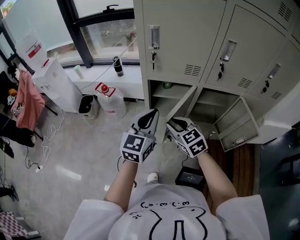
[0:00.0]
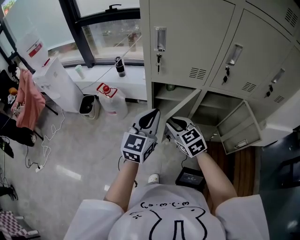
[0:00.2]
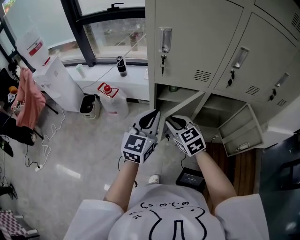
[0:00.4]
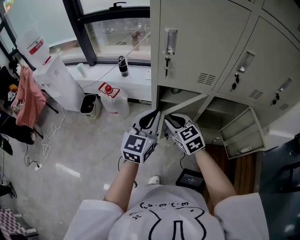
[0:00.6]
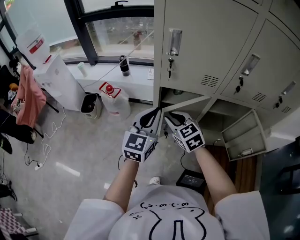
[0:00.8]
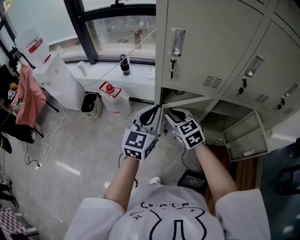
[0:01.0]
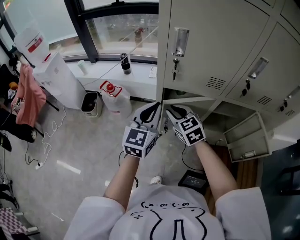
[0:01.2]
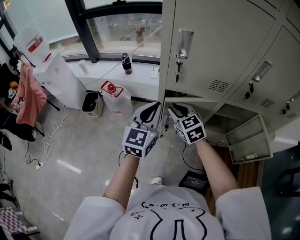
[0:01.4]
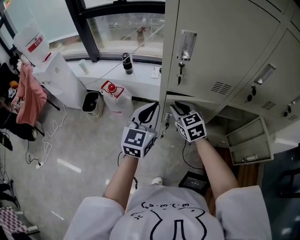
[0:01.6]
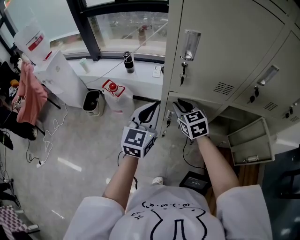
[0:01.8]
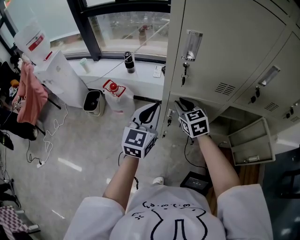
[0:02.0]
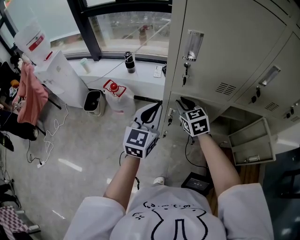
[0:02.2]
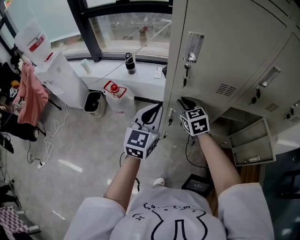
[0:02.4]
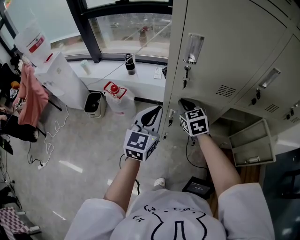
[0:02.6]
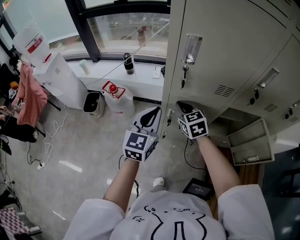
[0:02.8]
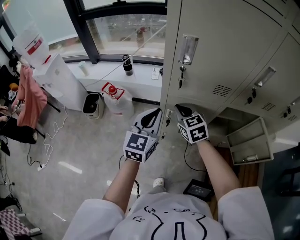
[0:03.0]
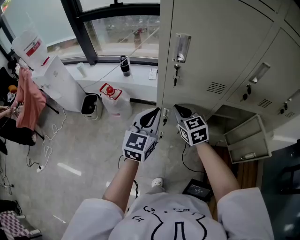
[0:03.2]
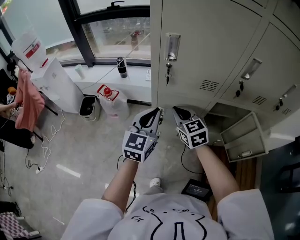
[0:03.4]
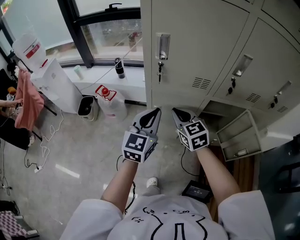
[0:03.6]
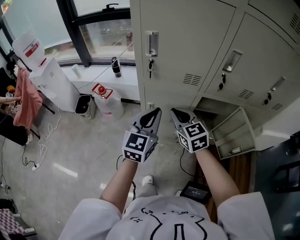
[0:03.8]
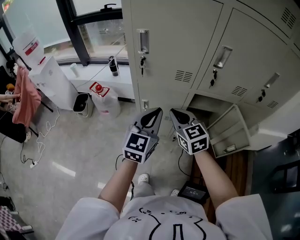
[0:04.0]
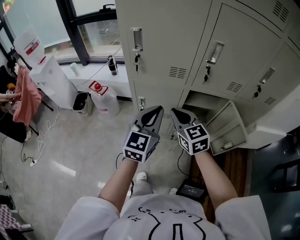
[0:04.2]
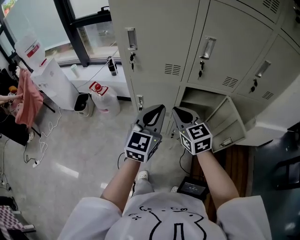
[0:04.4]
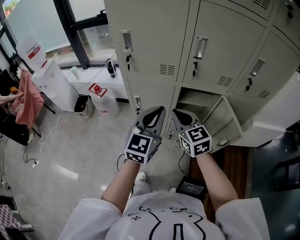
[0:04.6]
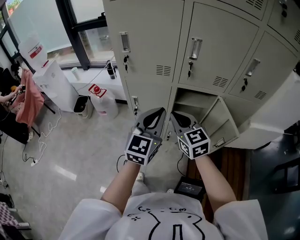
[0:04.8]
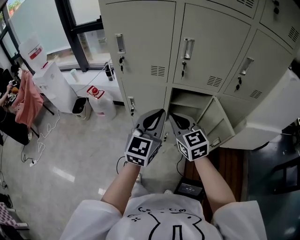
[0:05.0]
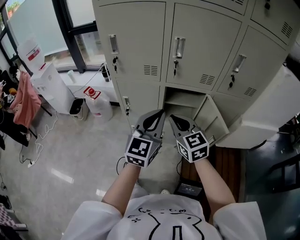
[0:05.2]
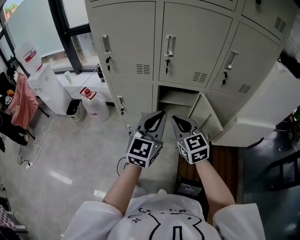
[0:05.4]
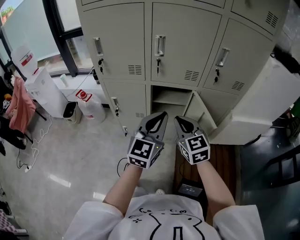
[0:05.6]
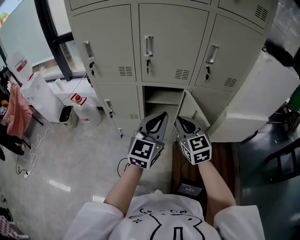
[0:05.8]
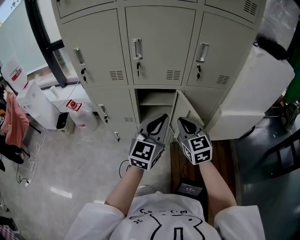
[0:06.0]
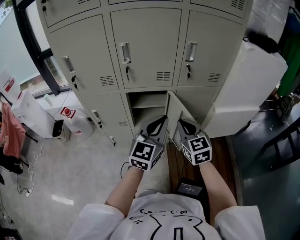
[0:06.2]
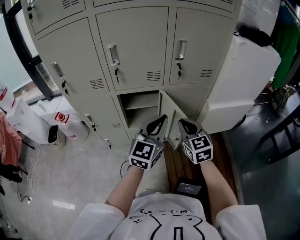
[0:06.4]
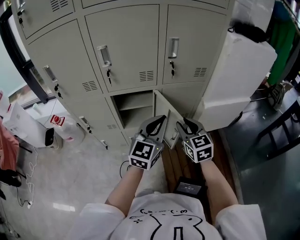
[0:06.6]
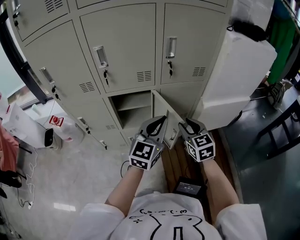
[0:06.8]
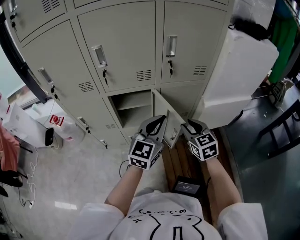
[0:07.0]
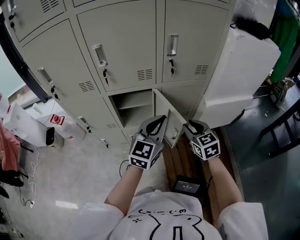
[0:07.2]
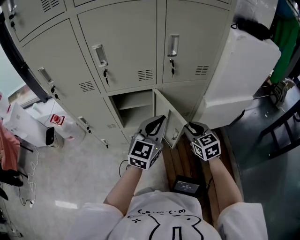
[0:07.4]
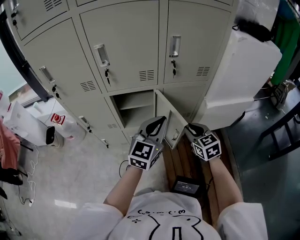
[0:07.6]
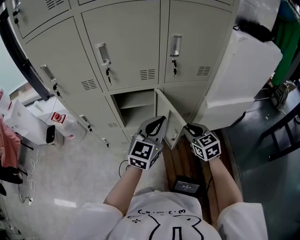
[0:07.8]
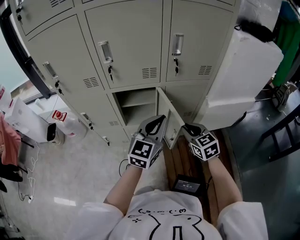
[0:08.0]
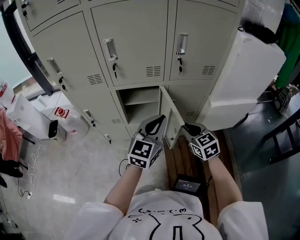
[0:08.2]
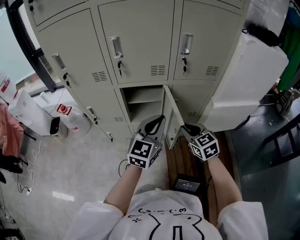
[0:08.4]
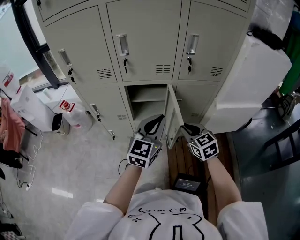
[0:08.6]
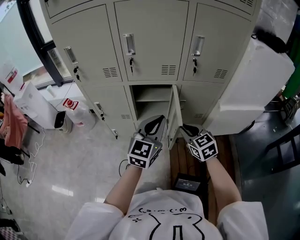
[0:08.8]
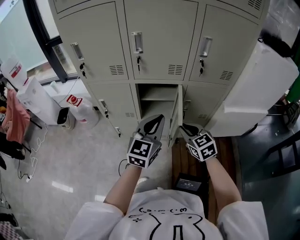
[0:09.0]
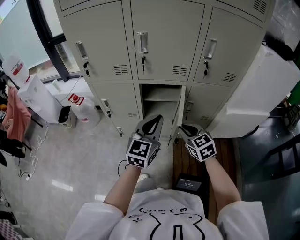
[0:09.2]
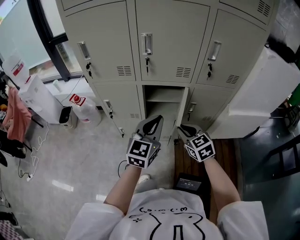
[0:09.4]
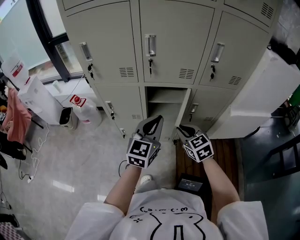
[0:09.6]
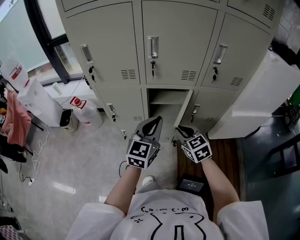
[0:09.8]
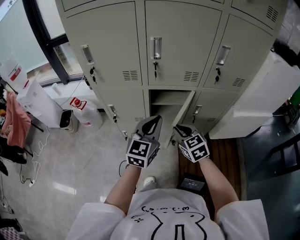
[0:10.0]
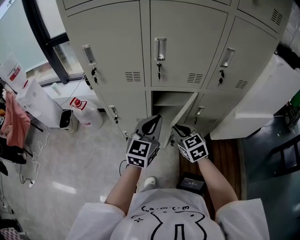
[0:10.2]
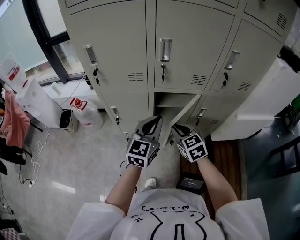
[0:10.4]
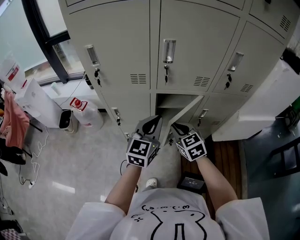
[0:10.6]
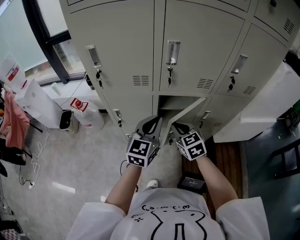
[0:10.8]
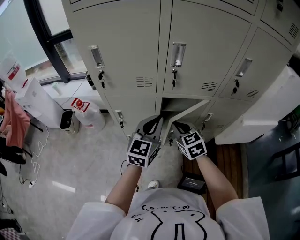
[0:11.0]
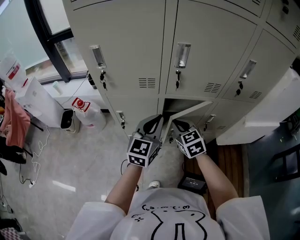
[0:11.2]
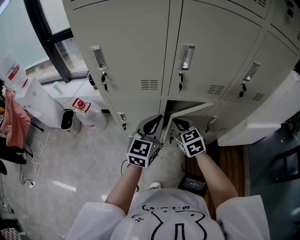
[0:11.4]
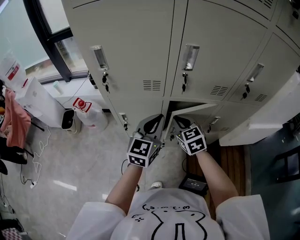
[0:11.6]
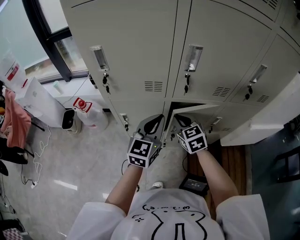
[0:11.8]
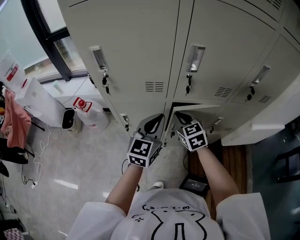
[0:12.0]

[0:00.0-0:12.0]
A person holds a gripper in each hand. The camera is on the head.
0:00.0 to 0:01.6: The right gripper travels forward by some 15 cm; the left gripper heads forward and to the left, covering approximately 15 cm.
0:01.6 to 0:03.0: The grippers move only a little.
0:03.0 to 0:04.4: The left gripper heads to the right and backward, covering roughly 20 cm. Meanwhile the right gripper is displaced backward, to the right and upward by about 25 cm.
0:04.4 to 0:06.0: The grippers both shift to the right by some 25 cm.
0:06.0 to 0:07.6: The left gripper is displaced to the right by some 10 cm. Meanwhile the right gripper moves to the right and downward, some 15 cm.
0:07.6 to 0:09.0: Both grippers travel together to the left, approximately 10 cm.
0:09.0 to 0:10.4: The grippers both shift to the left and forward by about 15 cm.
0:10.4 to 0:12.0: Both grippers move forward and to the left, roughly 15 cm.

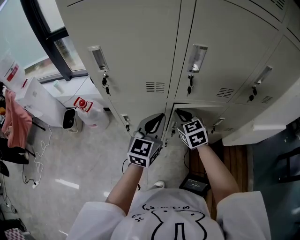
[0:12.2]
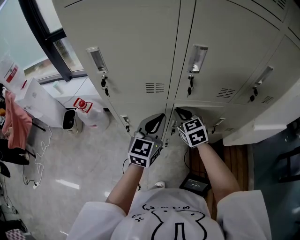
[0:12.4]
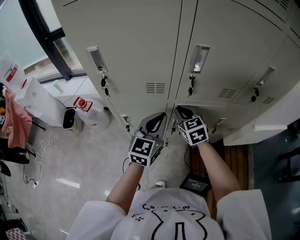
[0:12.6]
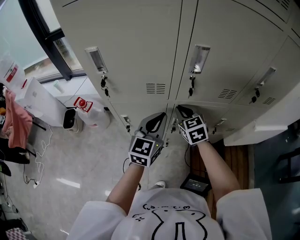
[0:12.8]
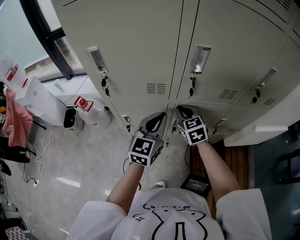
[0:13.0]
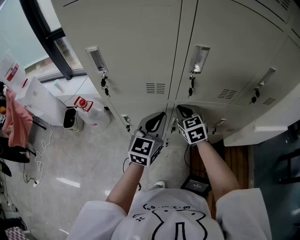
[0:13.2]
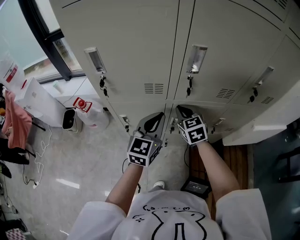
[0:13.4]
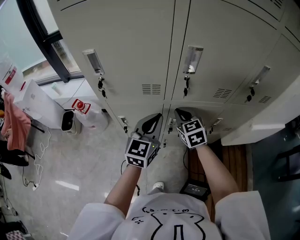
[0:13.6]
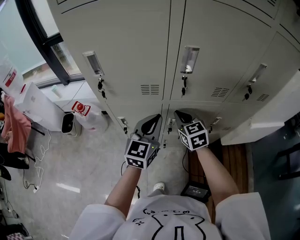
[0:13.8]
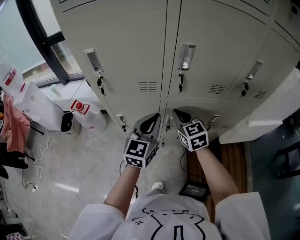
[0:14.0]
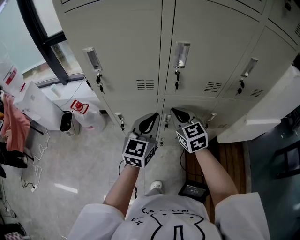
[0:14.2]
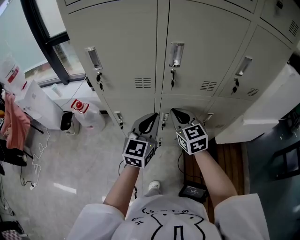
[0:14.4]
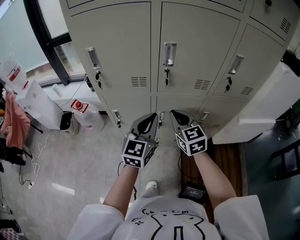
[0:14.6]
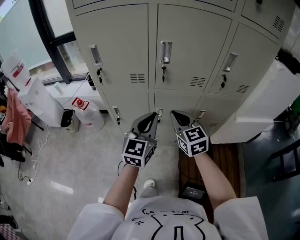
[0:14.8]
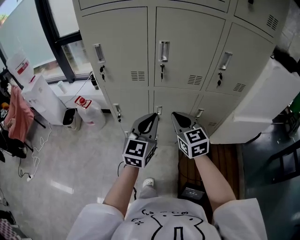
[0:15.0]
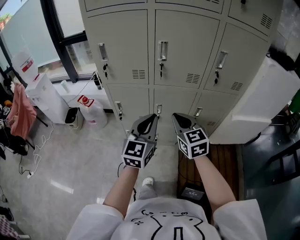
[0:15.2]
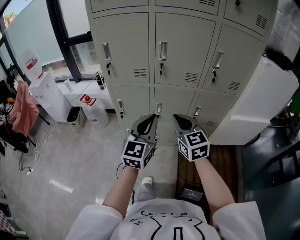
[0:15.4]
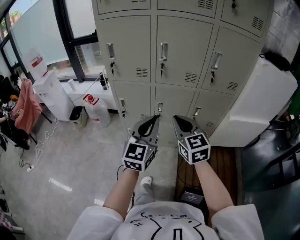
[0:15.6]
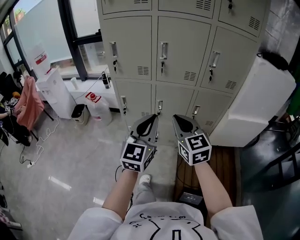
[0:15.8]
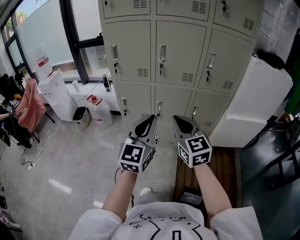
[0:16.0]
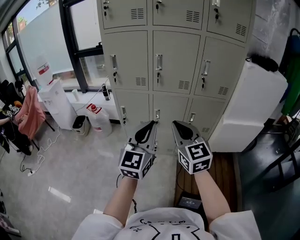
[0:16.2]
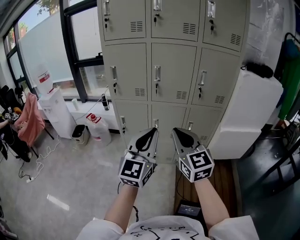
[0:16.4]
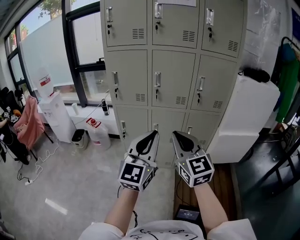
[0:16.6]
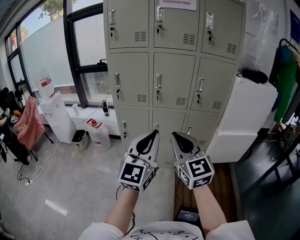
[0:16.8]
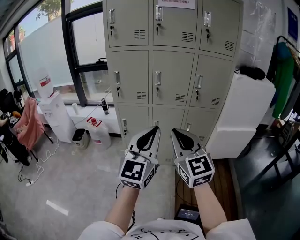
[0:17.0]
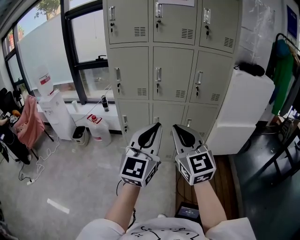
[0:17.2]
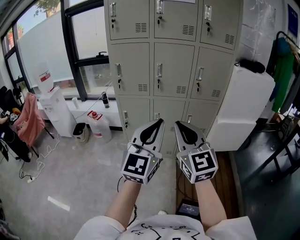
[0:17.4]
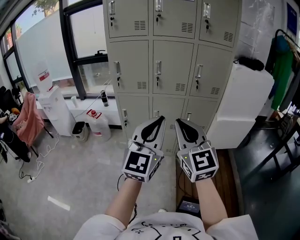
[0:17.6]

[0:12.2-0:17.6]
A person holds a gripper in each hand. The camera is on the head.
0:12.2 to 0:13.6: The grippers move only a little.
0:13.6 to 0:15.0: The right gripper is displaced backward and upward by approximately 20 cm; the left gripper travels backward, to the right and upward by some 15 cm.
0:15.0 to 0:16.2: The grippers both shift backward and upward by about 20 cm.
0:16.2 to 0:17.6: The two grippers go some 15 cm backward and upward.

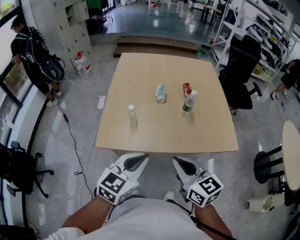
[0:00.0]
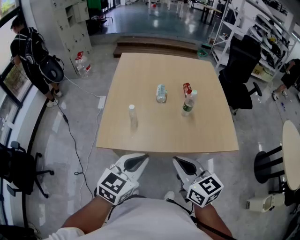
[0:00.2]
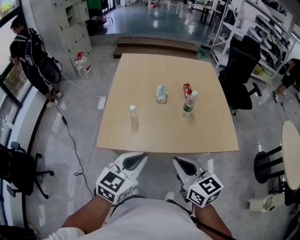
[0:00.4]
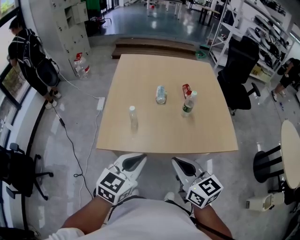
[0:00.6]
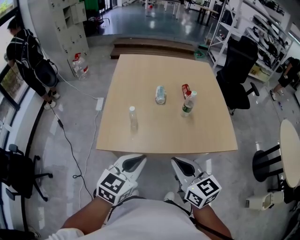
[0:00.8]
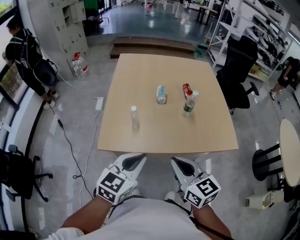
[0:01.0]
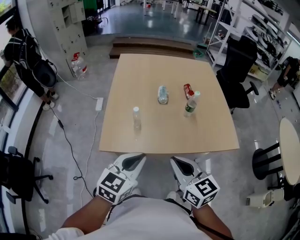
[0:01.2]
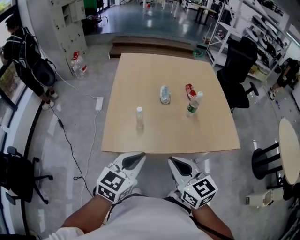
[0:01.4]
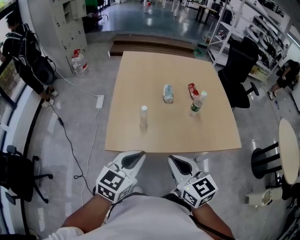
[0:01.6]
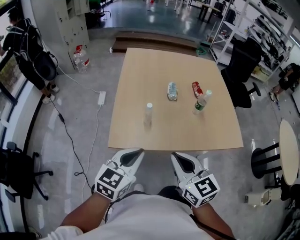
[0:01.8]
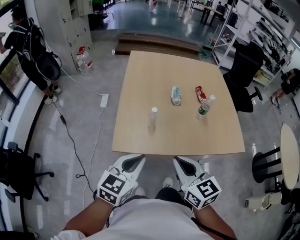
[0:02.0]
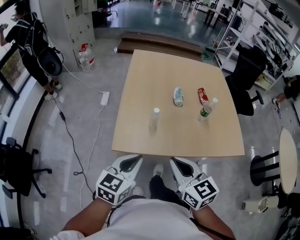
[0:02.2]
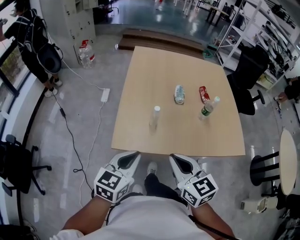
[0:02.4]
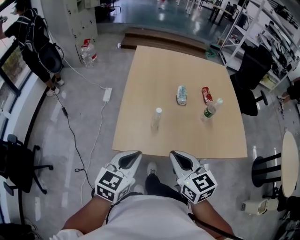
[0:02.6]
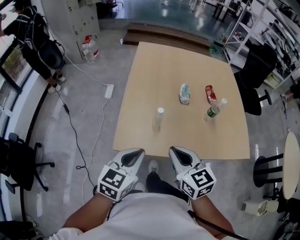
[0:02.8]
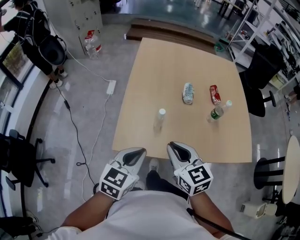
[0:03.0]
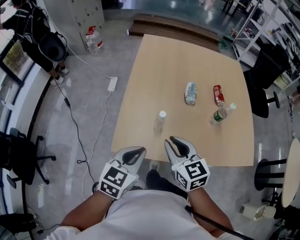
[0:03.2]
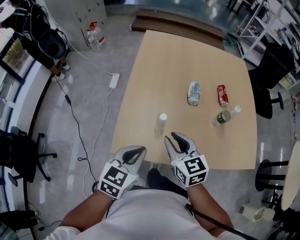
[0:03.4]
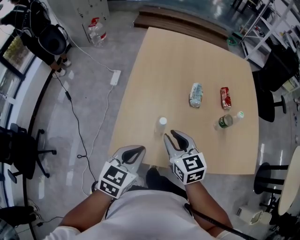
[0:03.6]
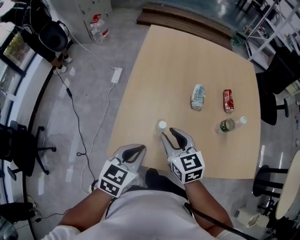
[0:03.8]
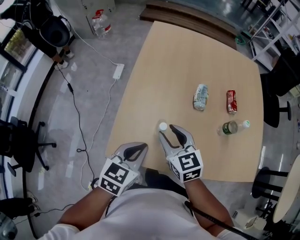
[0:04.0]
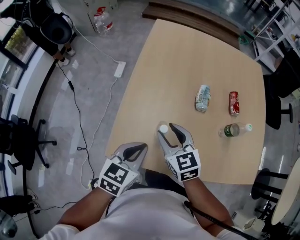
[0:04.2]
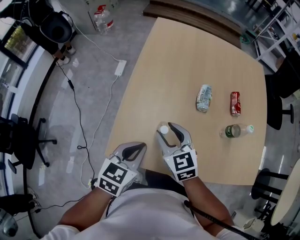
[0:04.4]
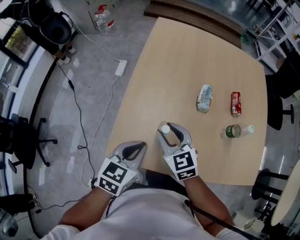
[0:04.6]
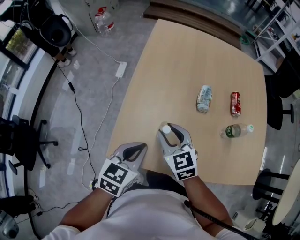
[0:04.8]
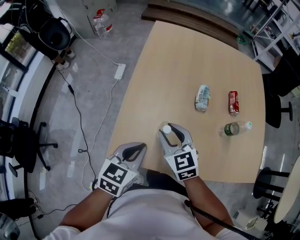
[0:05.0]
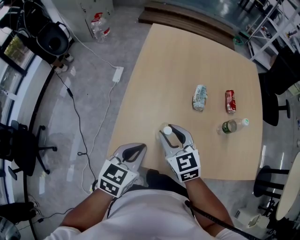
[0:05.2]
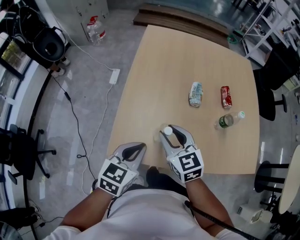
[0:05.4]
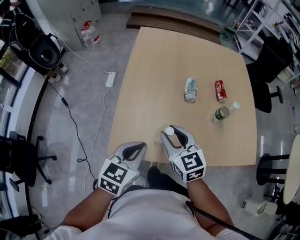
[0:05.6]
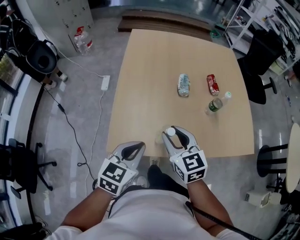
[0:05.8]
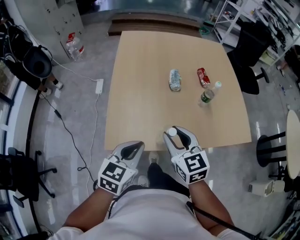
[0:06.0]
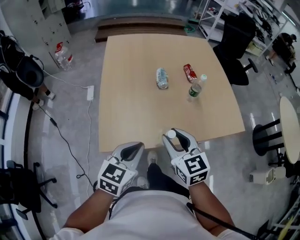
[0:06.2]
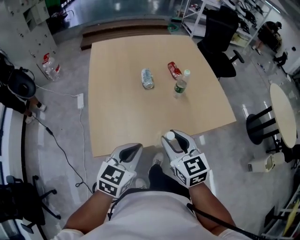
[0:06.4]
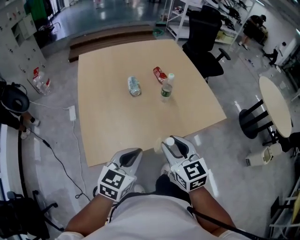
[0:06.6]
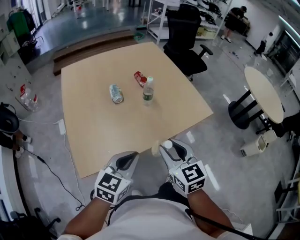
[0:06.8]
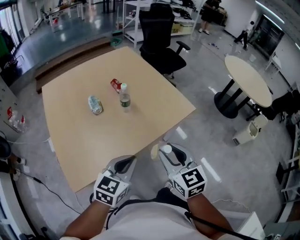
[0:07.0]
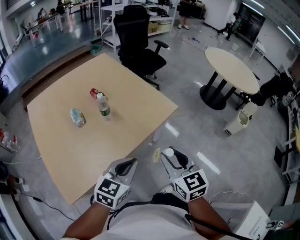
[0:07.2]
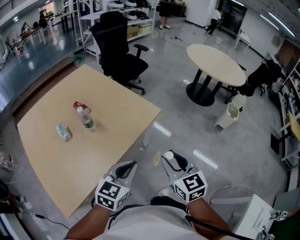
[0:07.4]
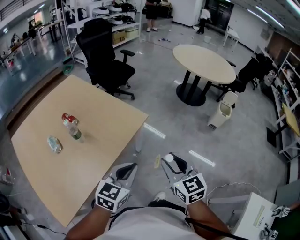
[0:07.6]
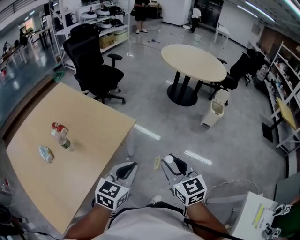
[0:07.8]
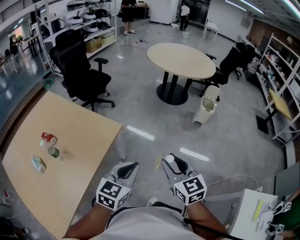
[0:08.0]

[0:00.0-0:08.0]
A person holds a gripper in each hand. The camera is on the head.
0:00.0 to 0:01.6: Both grippers move to the left, about 10 cm.
0:01.6 to 0:03.2: The left gripper moves forward and downward, some 10 cm. The right gripper travels forward, downward and to the left by roughly 15 cm.
0:03.2 to 0:04.8: The right gripper is displaced forward and downward by some 10 cm, while the left gripper goes about 5 cm forward.
0:04.8 to 0:06.4: The right gripper moves roughly 25 cm, and turns by about 30 degrees, while the left gripper shifts by about 15 cm, and swivels some 30 degrees.
0:06.4 to 0:08.0: The two grippers travel together, about 40 cm. The right gripper rotates roughly 60 degrees; the left gripper rotates approximately 50 degrees.
